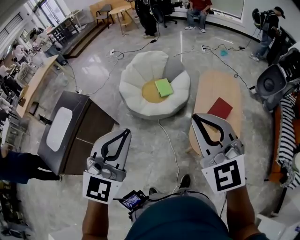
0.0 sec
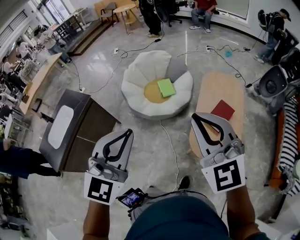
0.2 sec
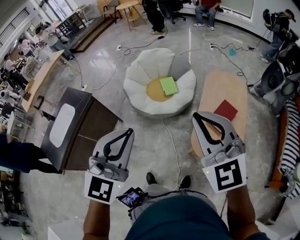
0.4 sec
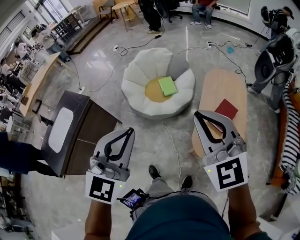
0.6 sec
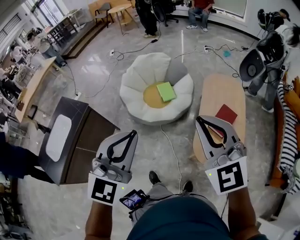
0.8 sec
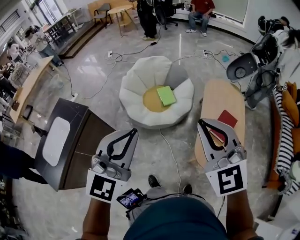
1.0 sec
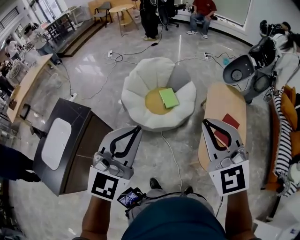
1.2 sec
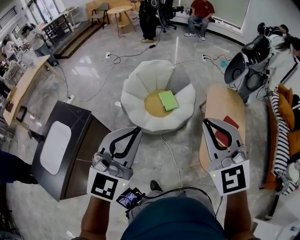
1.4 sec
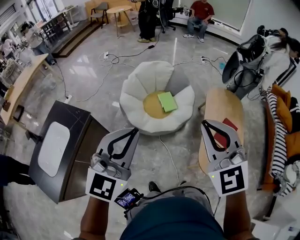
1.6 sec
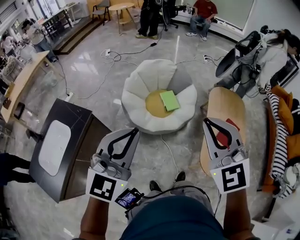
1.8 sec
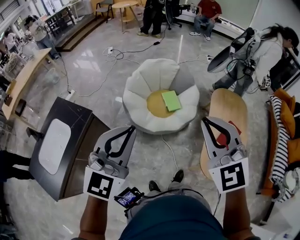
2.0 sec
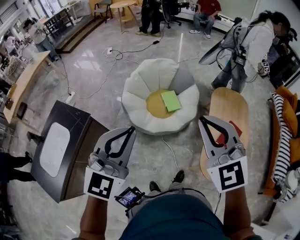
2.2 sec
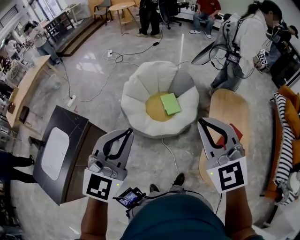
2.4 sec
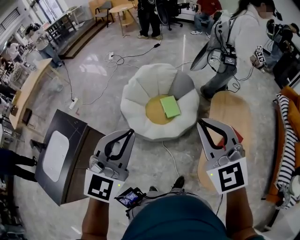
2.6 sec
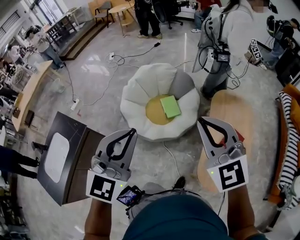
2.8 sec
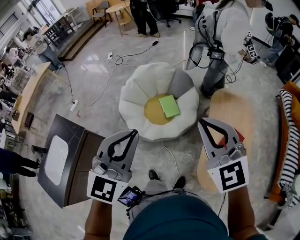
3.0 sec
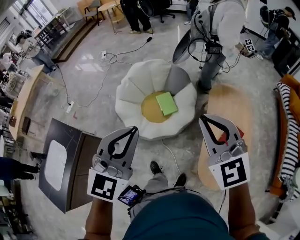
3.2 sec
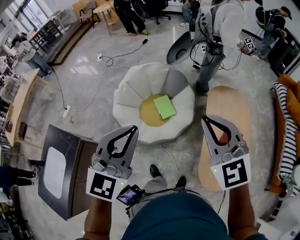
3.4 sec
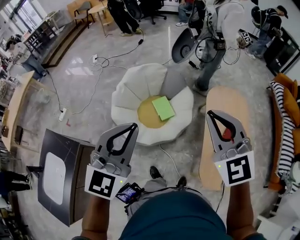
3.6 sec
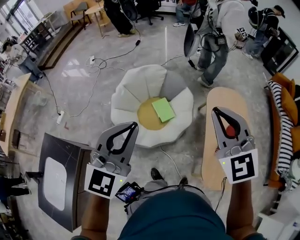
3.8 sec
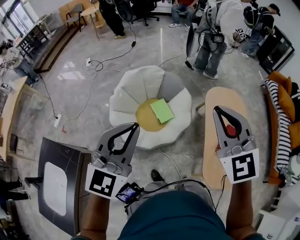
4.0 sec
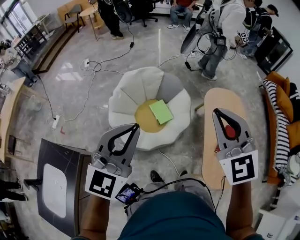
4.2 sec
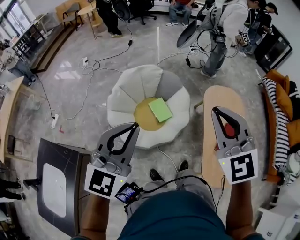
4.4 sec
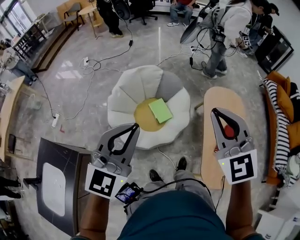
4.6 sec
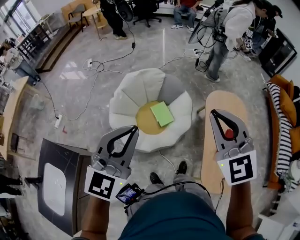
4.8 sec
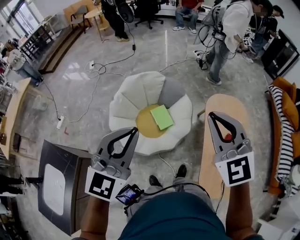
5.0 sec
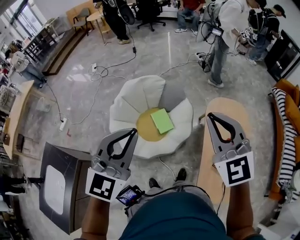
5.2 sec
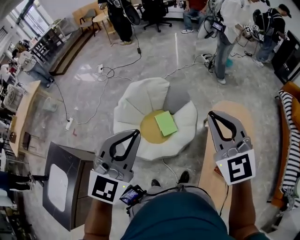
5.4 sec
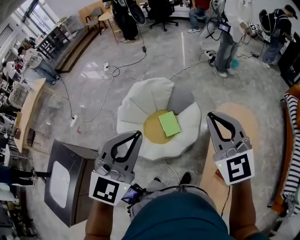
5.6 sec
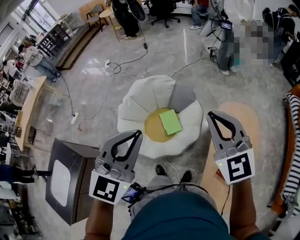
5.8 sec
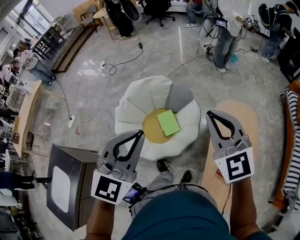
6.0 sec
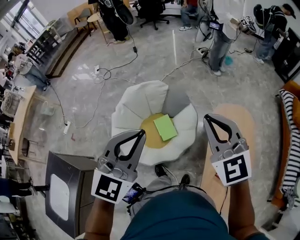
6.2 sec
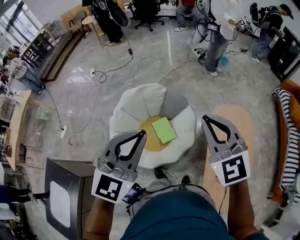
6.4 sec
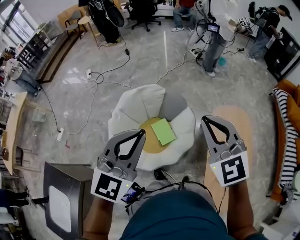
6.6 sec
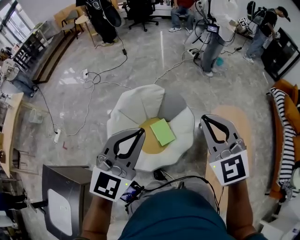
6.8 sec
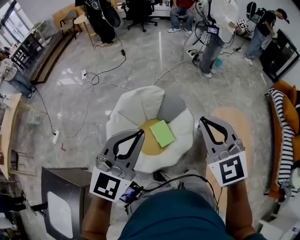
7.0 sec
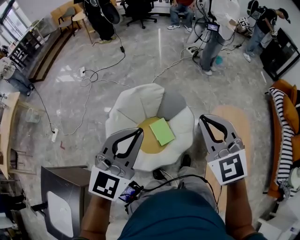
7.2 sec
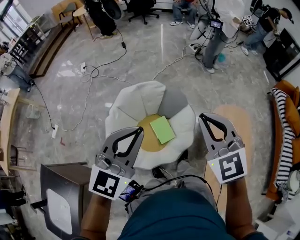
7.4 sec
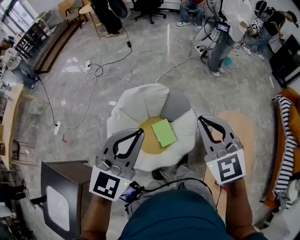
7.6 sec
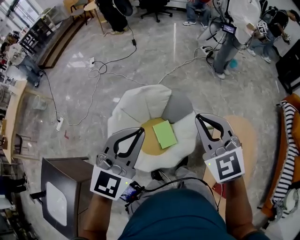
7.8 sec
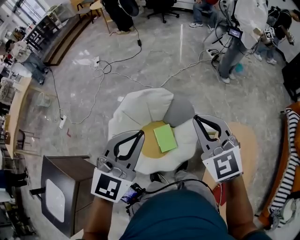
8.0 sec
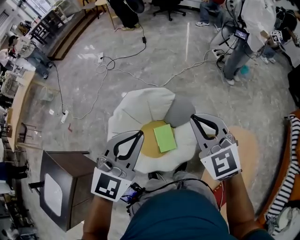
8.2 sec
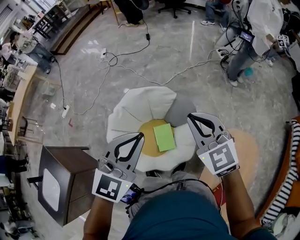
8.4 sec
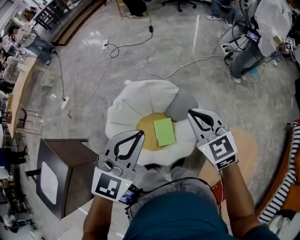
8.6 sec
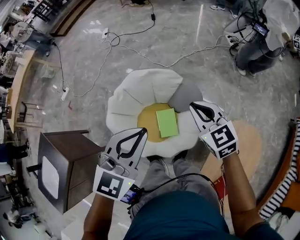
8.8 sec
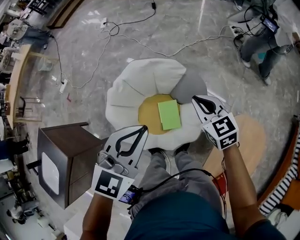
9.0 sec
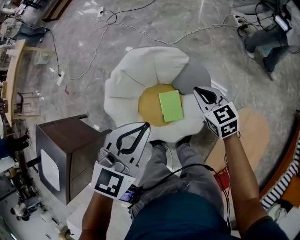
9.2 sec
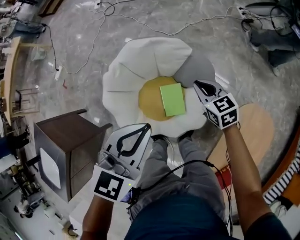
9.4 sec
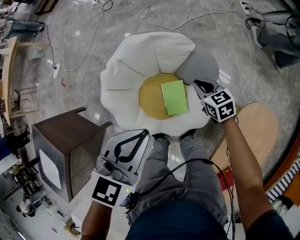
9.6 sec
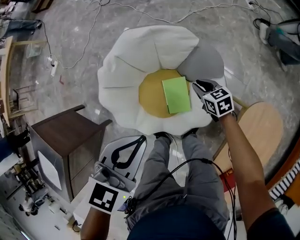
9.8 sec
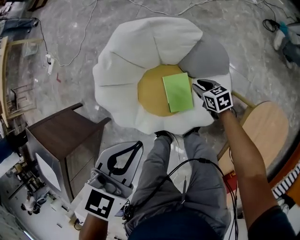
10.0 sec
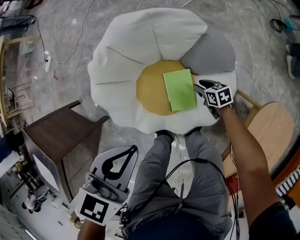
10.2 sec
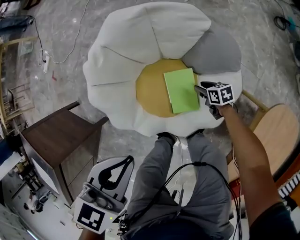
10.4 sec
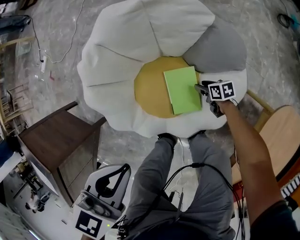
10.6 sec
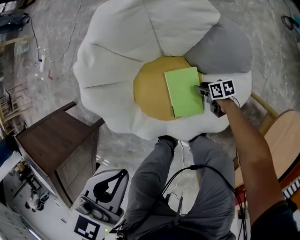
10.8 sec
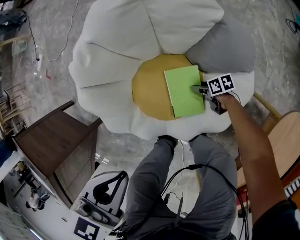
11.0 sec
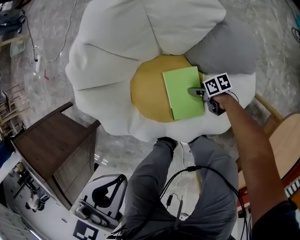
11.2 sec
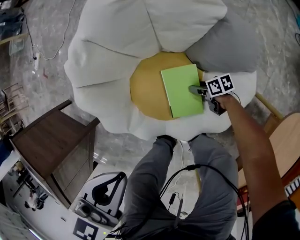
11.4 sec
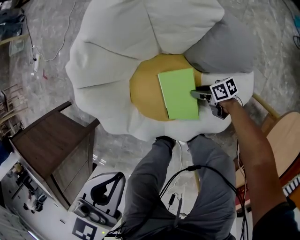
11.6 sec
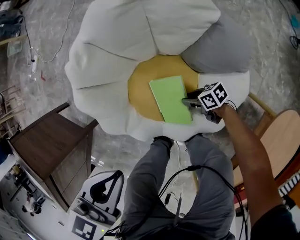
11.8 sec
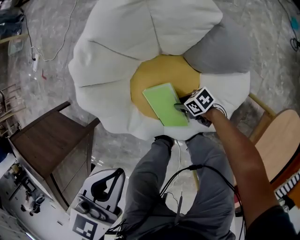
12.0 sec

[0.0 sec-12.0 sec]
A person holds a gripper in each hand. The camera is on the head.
0.0 sec to 1.6 sec: The grippers both shift forward and to the left by about 25 cm.
1.6 sec to 3.0 sec: The grippers both shift forward and to the right by about 20 cm.
3.0 sec to 4.4 sec: Both grippers move forward and to the left, some 15 cm.
4.4 sec to 6.0 sec: The right gripper is displaced forward and to the right by approximately 20 cm, while the left gripper heads to the right and forward, covering roughly 20 cm.
6.0 sec to 7.6 sec: The two grippers go about 20 cm forward and to the left.
7.6 sec to 9.0 sec: The right gripper shifts some 30 cm downward and forward, and rotates approximately 30 degrees. Meanwhile the left gripper shifts about 15 cm downward, forward and to the right, and turns by roughly 20 degrees.
9.0 sec to 10.4 sec: The right gripper goes approximately 60 cm downward, rotates roughly 50 degrees, and opens. The left gripper shifts approximately 25 cm downward, and changes its angle by roughly 30 degrees.
10.4 sec to 12.0 sec: The right gripper changes place by some 15 cm, and swivels about 30 degrees; the left gripper moves downward, approximately 5 cm.

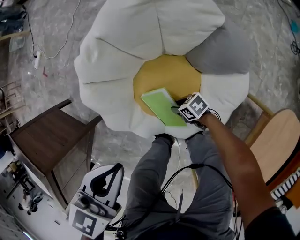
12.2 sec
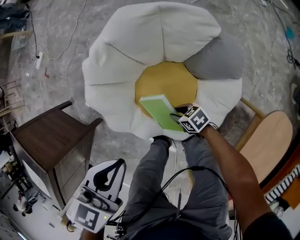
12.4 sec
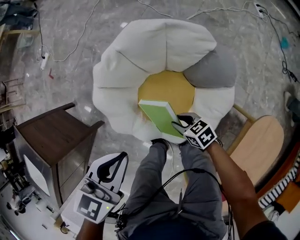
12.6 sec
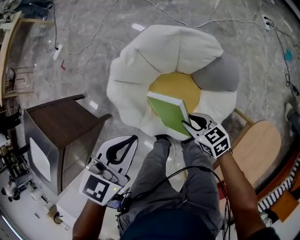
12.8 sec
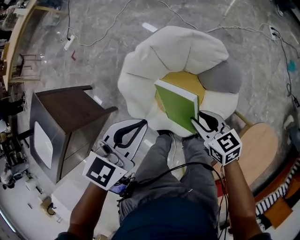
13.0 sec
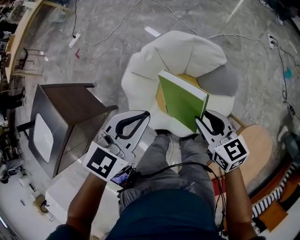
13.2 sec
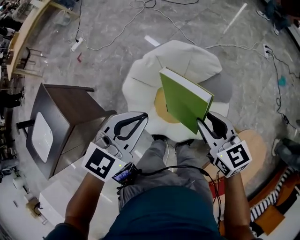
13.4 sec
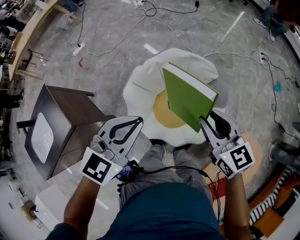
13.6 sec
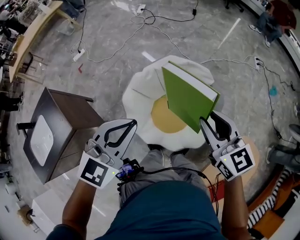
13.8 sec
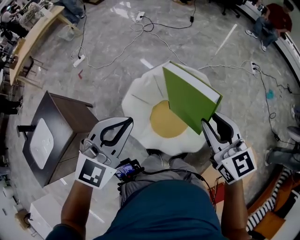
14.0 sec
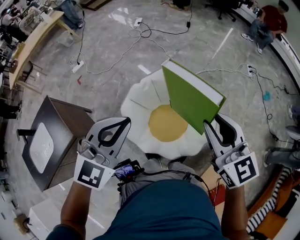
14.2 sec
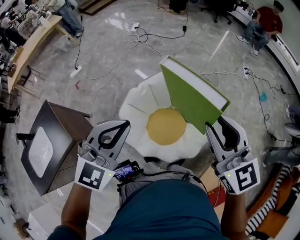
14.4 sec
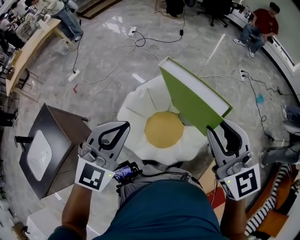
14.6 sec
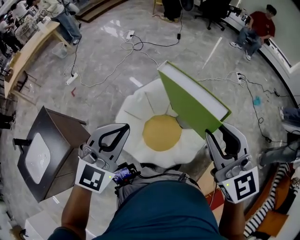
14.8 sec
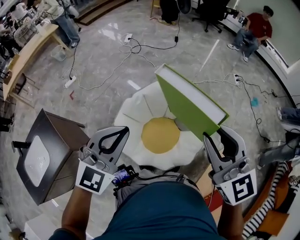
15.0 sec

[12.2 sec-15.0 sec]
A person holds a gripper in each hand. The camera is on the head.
12.2 sec to 13.6 sec: The right gripper shifts about 70 cm upward, and changes its angle by approximately 60 degrees; the left gripper shifts some 30 cm upward, and rotates roughly 30 degrees.
13.6 sec to 15.0 sec: The right gripper moves upward, roughly 20 cm, and swivels some 30 degrees. The left gripper goes some 10 cm upward, and changes its angle by some 20 degrees.

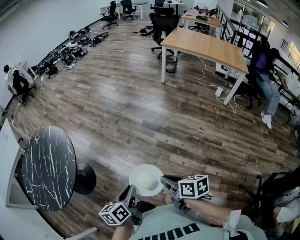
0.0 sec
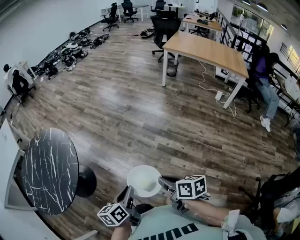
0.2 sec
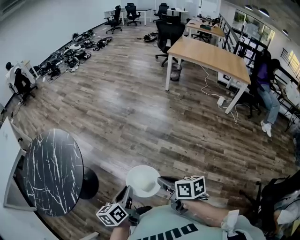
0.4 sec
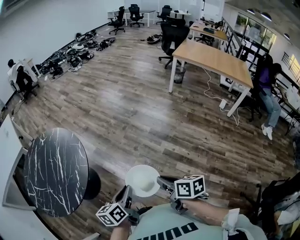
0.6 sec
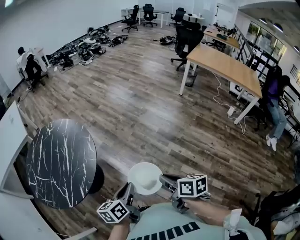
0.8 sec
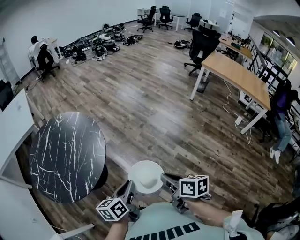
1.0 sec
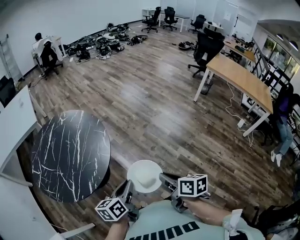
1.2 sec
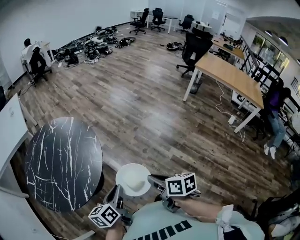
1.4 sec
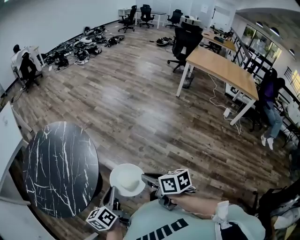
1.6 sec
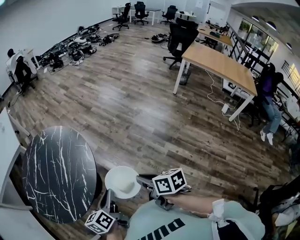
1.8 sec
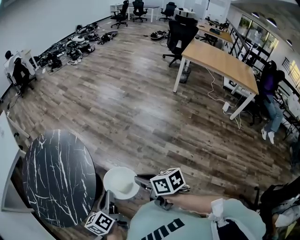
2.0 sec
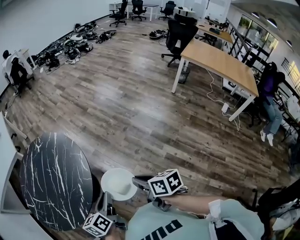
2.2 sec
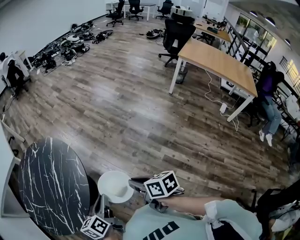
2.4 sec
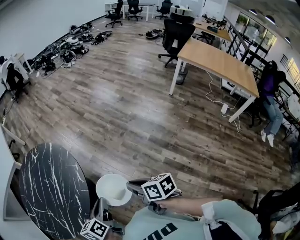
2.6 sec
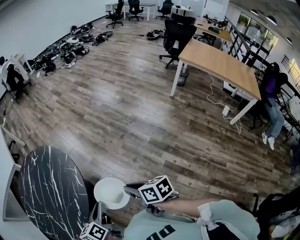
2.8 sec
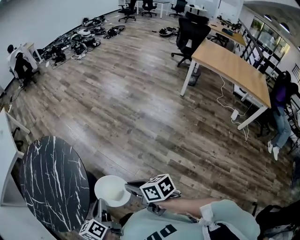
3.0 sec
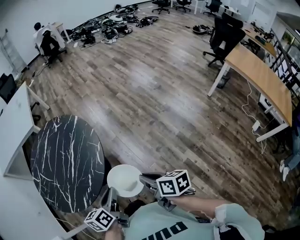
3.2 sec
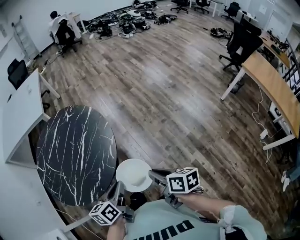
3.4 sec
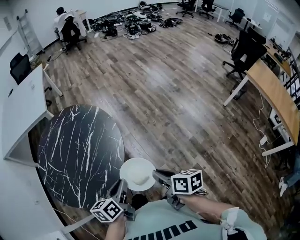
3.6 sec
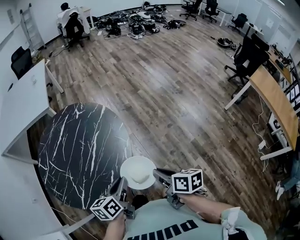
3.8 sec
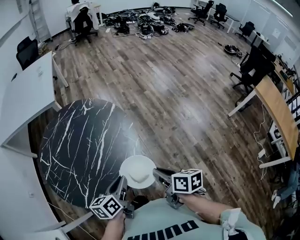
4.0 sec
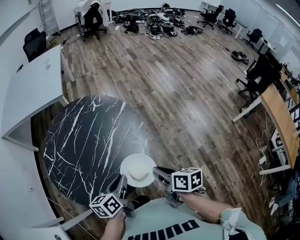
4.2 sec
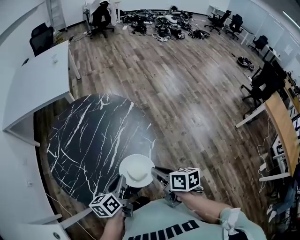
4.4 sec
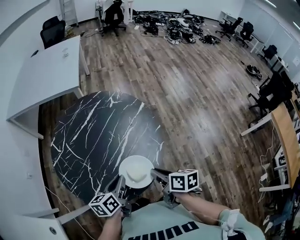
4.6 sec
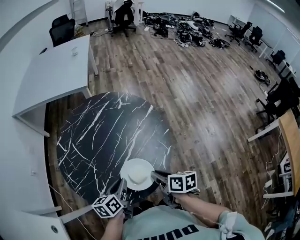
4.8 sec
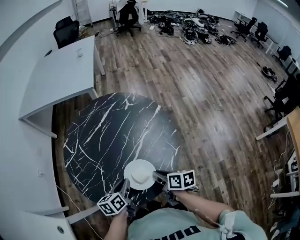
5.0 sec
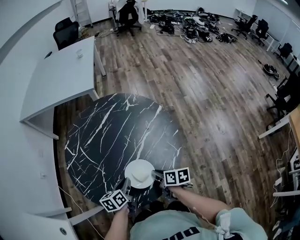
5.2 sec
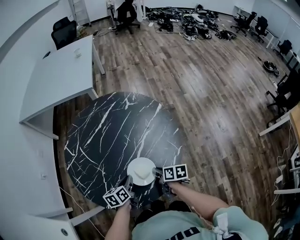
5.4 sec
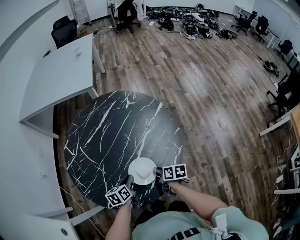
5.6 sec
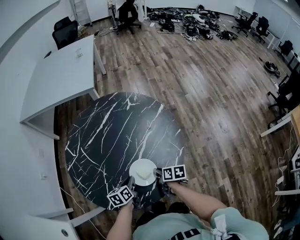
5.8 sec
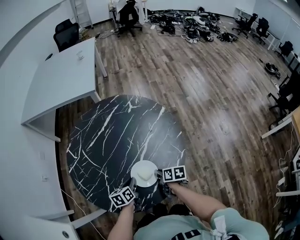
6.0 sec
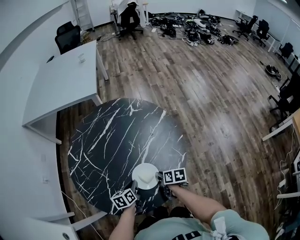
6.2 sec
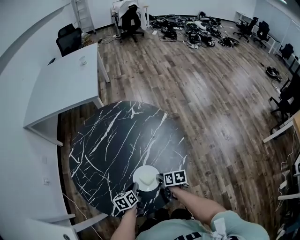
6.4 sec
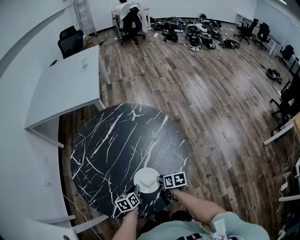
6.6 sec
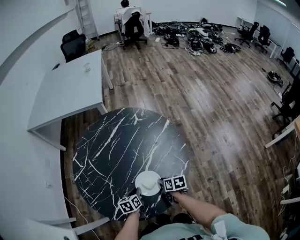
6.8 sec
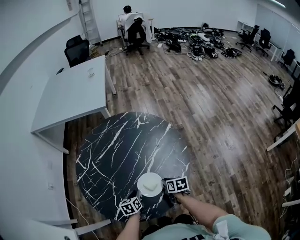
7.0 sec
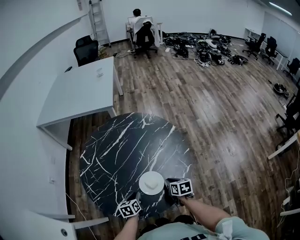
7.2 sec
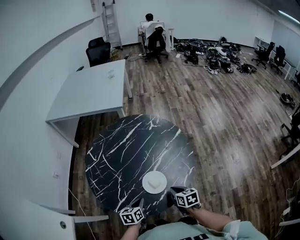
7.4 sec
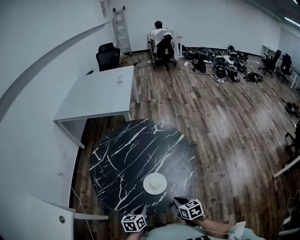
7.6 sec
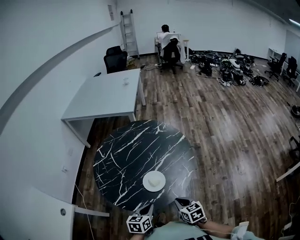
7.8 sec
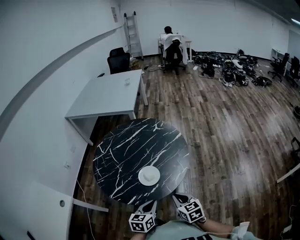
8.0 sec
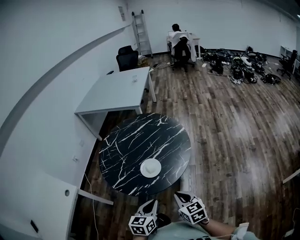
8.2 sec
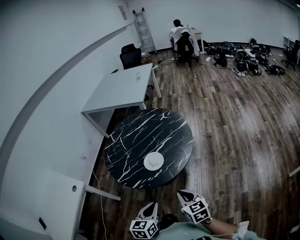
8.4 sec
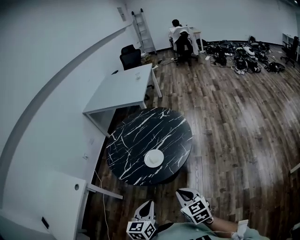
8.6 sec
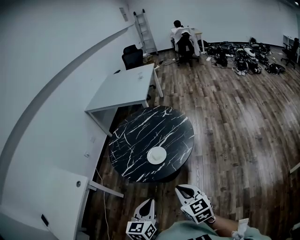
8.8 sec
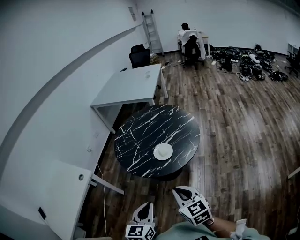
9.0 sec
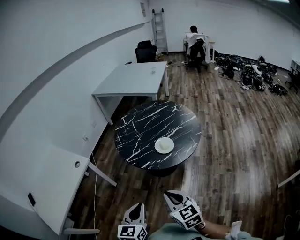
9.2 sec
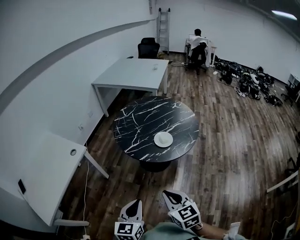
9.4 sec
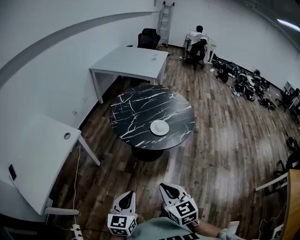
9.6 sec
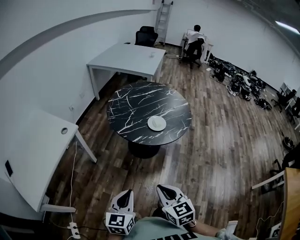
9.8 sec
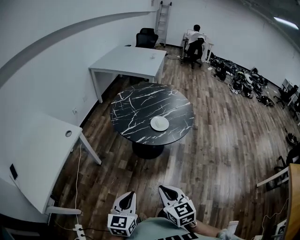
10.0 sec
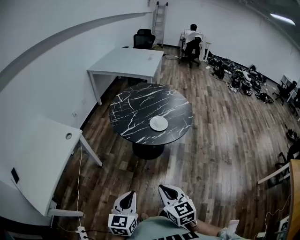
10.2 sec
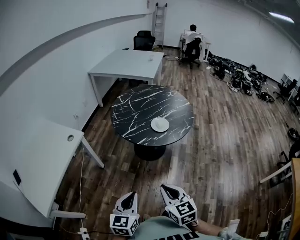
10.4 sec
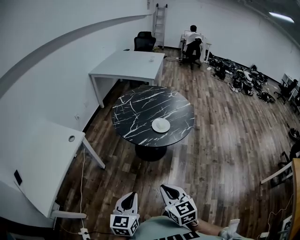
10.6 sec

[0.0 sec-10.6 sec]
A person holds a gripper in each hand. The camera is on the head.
0.0 sec to 1.6 sec: The two grippers go approximately 30 cm to the left and forward.
1.6 sec to 3.0 sec: Both grippers travel together forward and to the right, about 15 cm.
3.0 sec to 4.6 sec: Both grippers move to the left and forward, some 35 cm.
4.6 sec to 6.0 sec: The two grippers go roughly 20 cm downward.
6.0 sec to 7.6 sec: Both grippers travel together backward and upward, approximately 15 cm. The right gripper turns by some 40 degrees.
7.6 sec to 9.0 sec: The two grippers go roughly 35 cm backward and upward. The left gripper swivels some 30 degrees; the right gripper rotates approximately 30 degrees.
9.0 sec to 10.6 sec: Both grippers move to the left and backward, approximately 20 cm.
